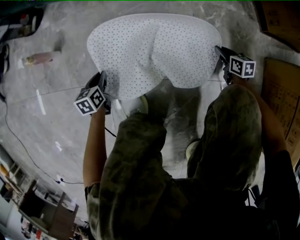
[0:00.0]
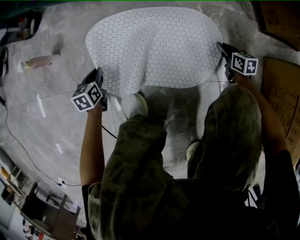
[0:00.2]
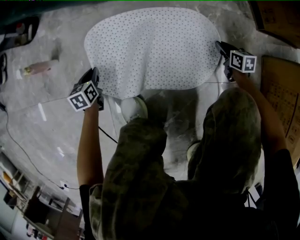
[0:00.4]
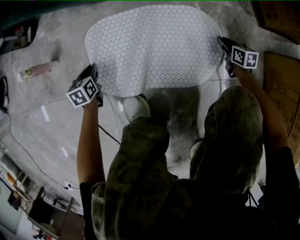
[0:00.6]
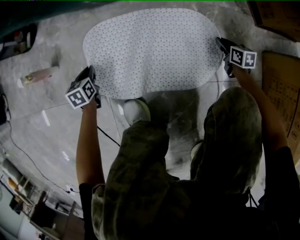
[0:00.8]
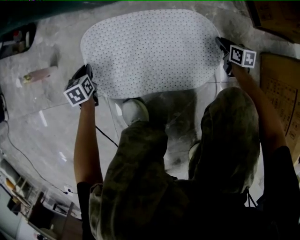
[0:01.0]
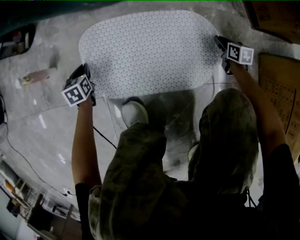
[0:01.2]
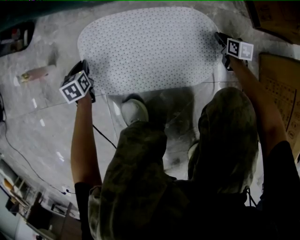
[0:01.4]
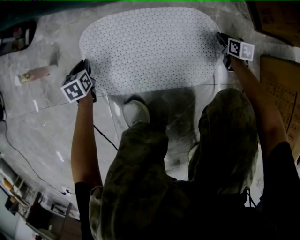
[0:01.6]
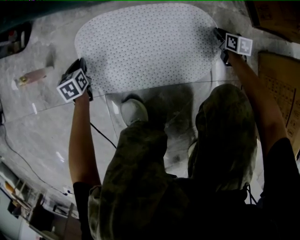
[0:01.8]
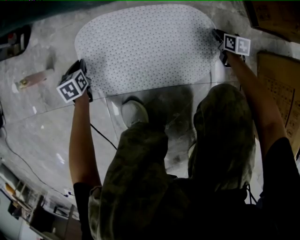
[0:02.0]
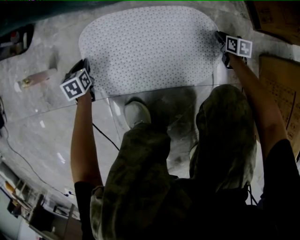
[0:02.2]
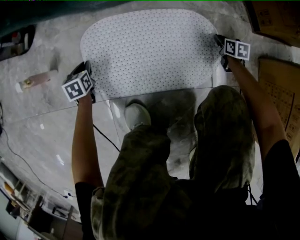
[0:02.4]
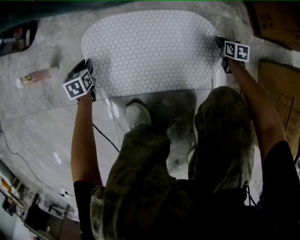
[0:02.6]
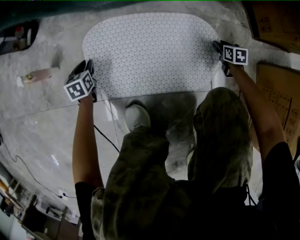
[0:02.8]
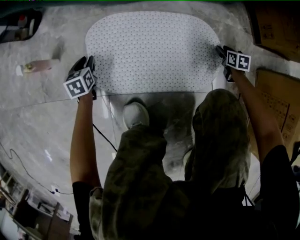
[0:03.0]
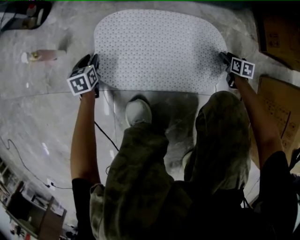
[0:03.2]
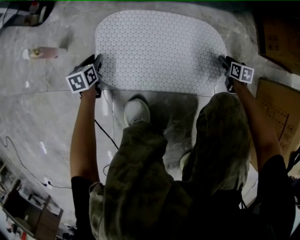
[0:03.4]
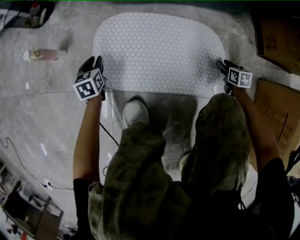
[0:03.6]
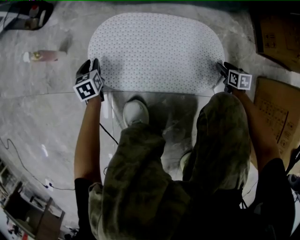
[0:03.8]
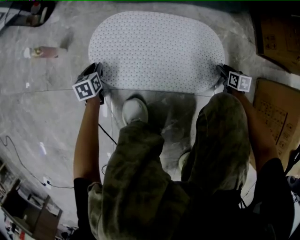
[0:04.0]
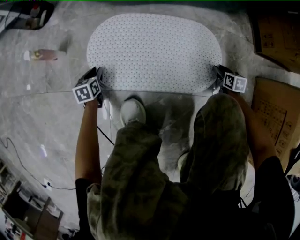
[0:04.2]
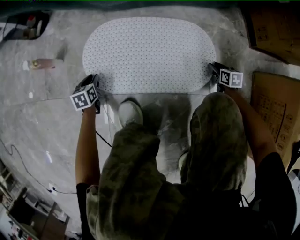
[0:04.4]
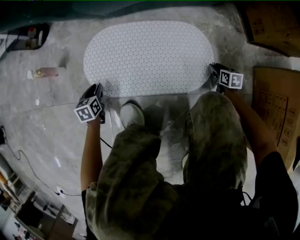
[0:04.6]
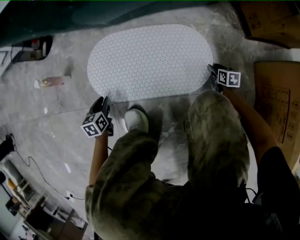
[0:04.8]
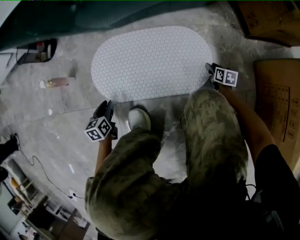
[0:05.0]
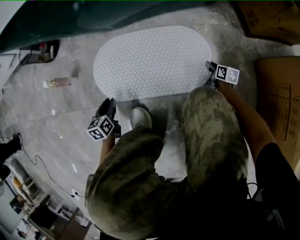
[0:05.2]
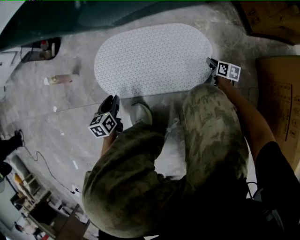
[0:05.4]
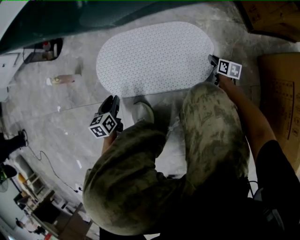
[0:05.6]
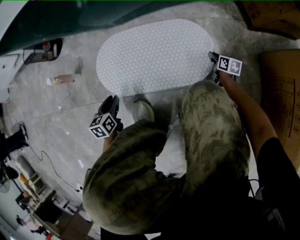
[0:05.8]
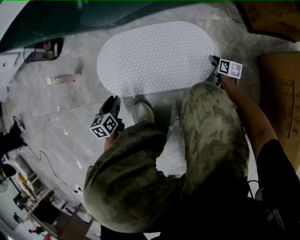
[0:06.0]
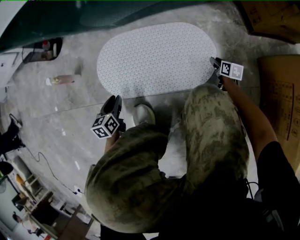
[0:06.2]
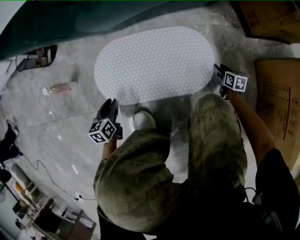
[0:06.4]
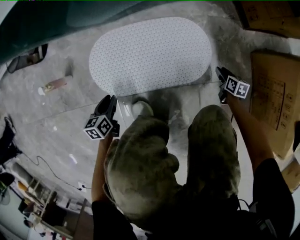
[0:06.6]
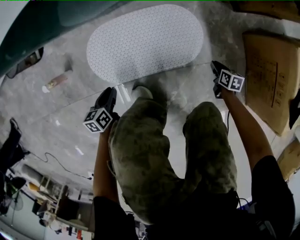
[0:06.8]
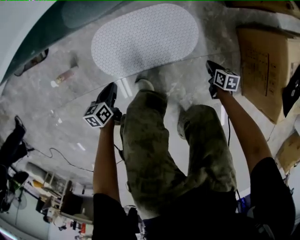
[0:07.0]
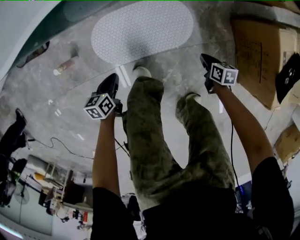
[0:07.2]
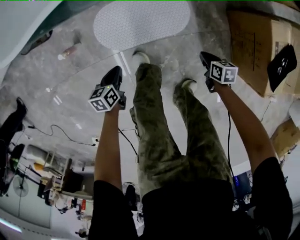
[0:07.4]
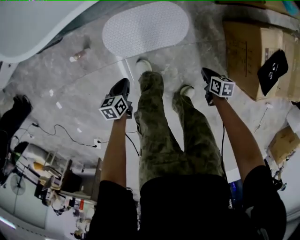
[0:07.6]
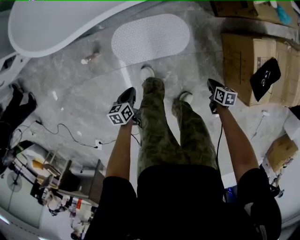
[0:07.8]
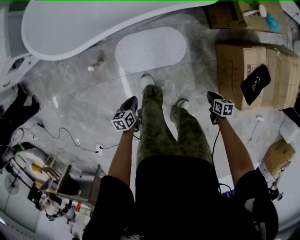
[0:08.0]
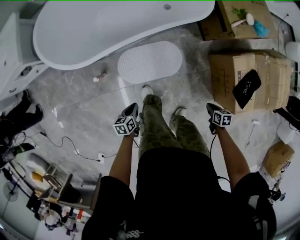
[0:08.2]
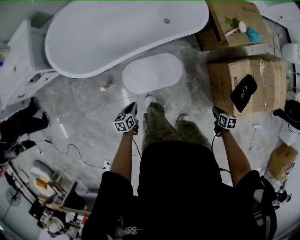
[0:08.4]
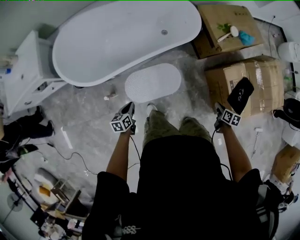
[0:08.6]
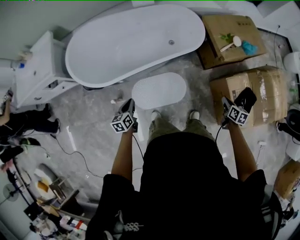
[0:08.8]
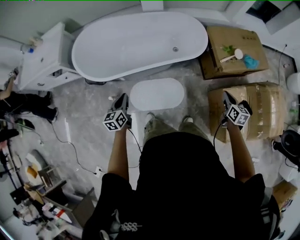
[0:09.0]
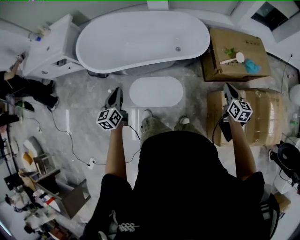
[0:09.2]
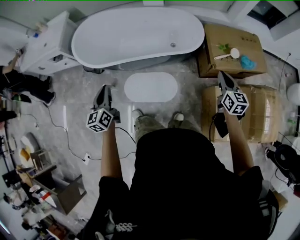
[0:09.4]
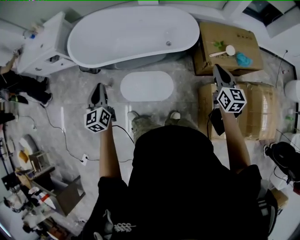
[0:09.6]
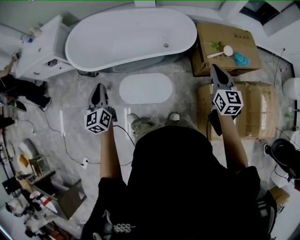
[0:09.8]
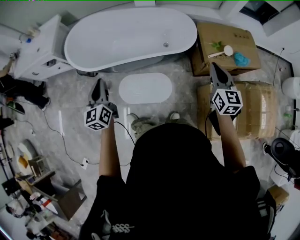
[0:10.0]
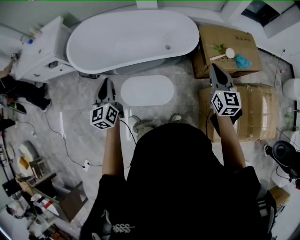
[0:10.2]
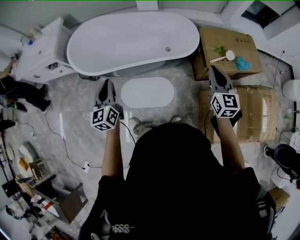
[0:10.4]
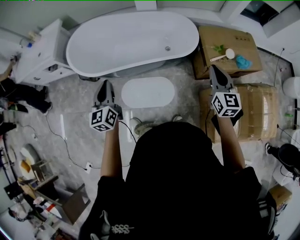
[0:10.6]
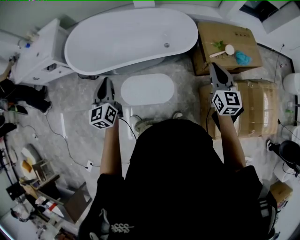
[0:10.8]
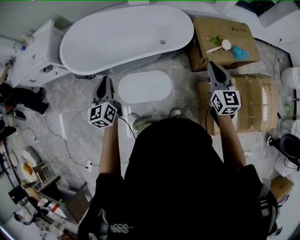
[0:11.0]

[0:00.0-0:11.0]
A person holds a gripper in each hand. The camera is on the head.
0:00.0 to 0:01.6: The left gripper shifts some 15 cm forward; the right gripper shifts approximately 10 cm forward and to the right.
0:01.6 to 0:03.2: The left gripper opens its fingers, while the right gripper opens.
0:03.2 to 0:04.8: The right gripper goes roughly 10 cm backward; the left gripper moves backward and to the right, approximately 15 cm.
0:04.8 to 0:06.2: The left gripper heads upward, covering approximately 5 cm.
0:06.2 to 0:07.8: The right gripper shifts about 60 cm upward and backward, and closes up, while the left gripper shifts approximately 40 cm upward, turns by about 20 degrees, and closes.
0:07.8 to 0:09.4: The grippers both shift upward by some 60 cm. The right gripper angles its fingers upward, by approximately 40 degrees. The left gripper tips its fingers upward by approximately 40 degrees.
0:09.4 to 0:11.0: The right gripper moves upward and to the left, some 10 cm. The left gripper moves forward and to the right, about 10 cm.

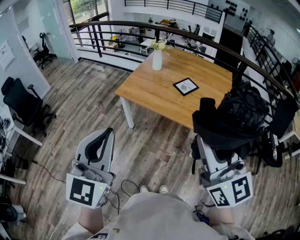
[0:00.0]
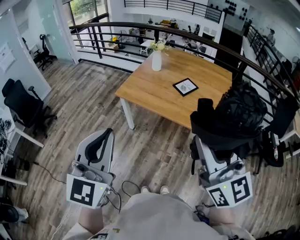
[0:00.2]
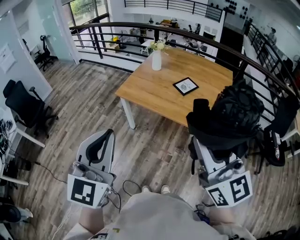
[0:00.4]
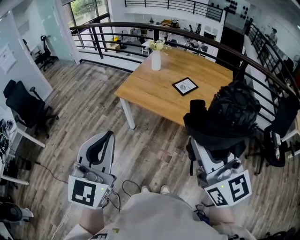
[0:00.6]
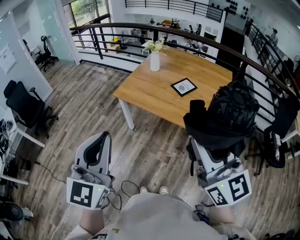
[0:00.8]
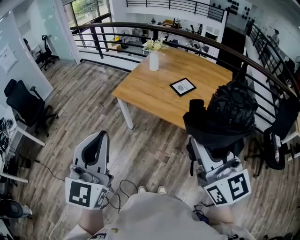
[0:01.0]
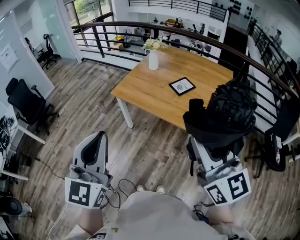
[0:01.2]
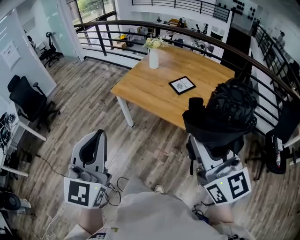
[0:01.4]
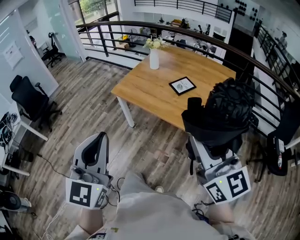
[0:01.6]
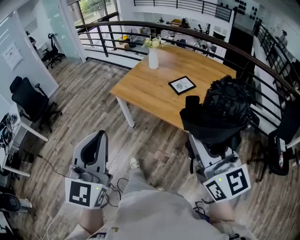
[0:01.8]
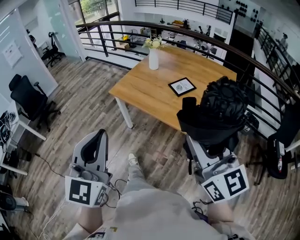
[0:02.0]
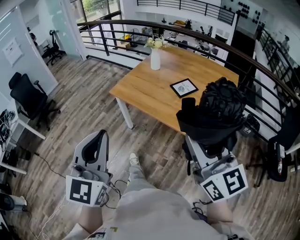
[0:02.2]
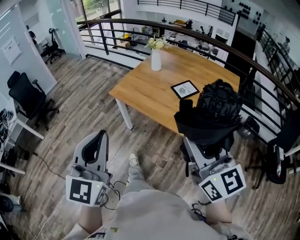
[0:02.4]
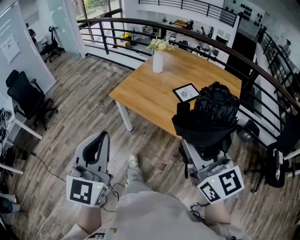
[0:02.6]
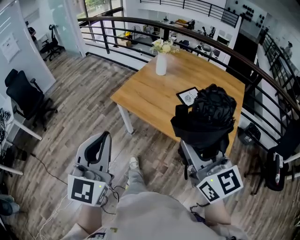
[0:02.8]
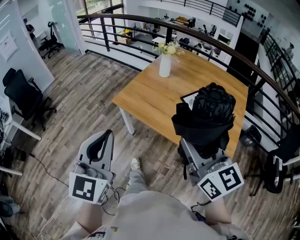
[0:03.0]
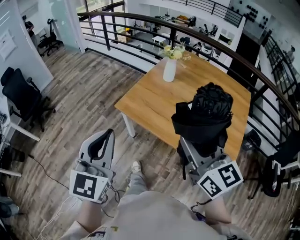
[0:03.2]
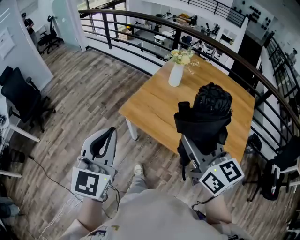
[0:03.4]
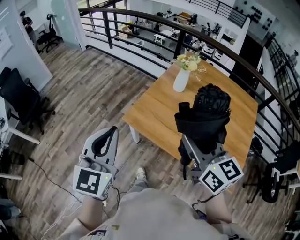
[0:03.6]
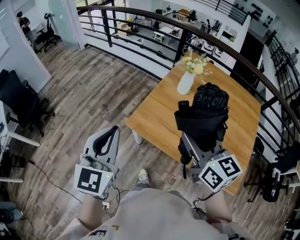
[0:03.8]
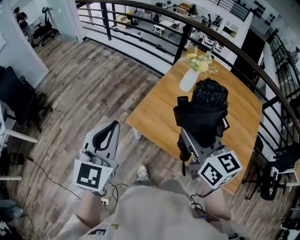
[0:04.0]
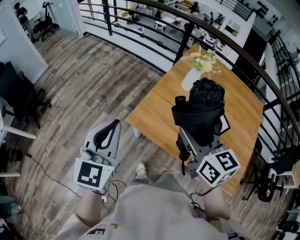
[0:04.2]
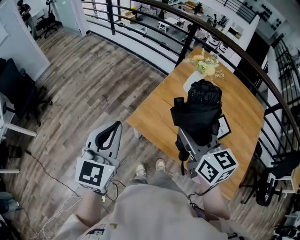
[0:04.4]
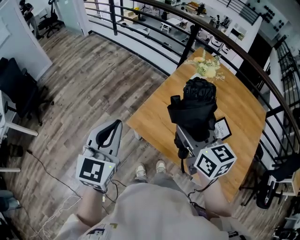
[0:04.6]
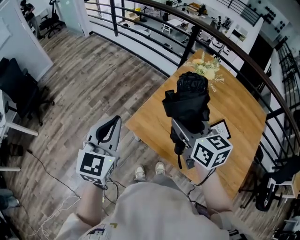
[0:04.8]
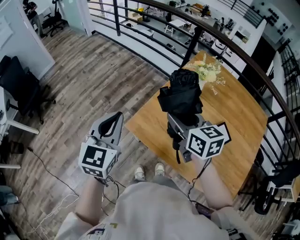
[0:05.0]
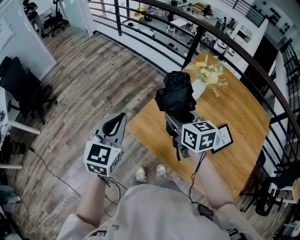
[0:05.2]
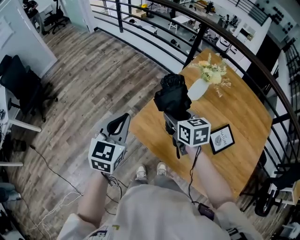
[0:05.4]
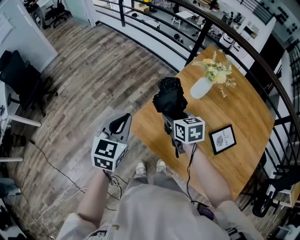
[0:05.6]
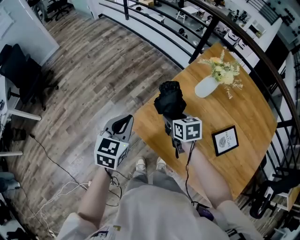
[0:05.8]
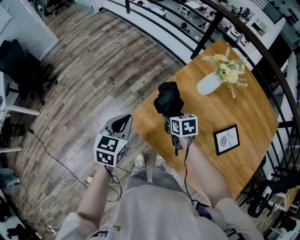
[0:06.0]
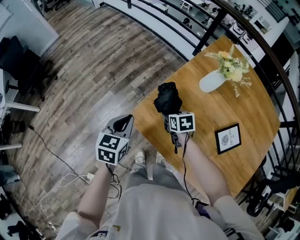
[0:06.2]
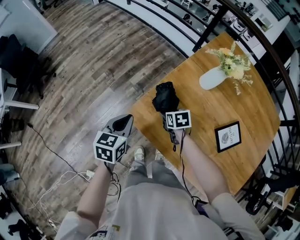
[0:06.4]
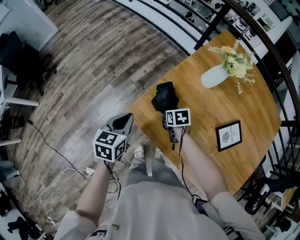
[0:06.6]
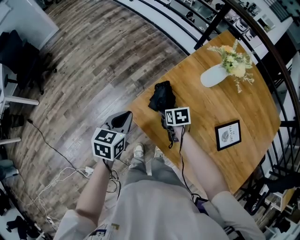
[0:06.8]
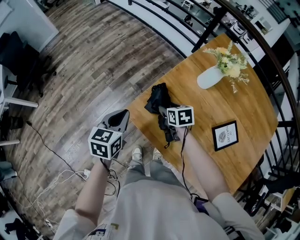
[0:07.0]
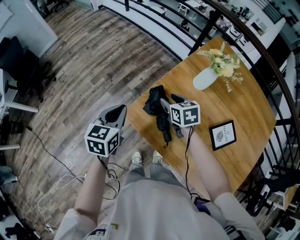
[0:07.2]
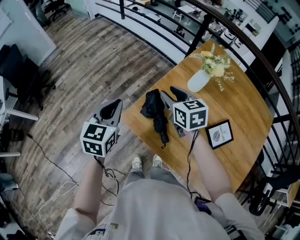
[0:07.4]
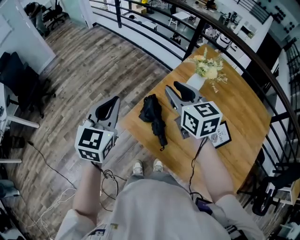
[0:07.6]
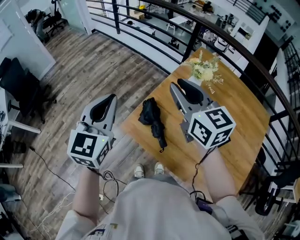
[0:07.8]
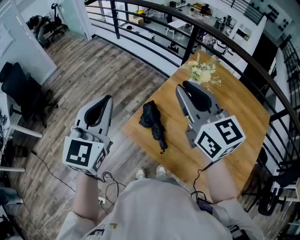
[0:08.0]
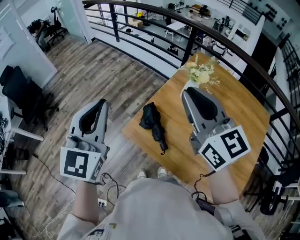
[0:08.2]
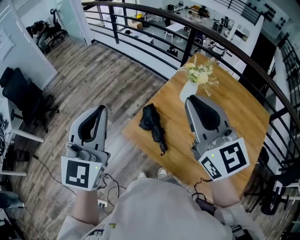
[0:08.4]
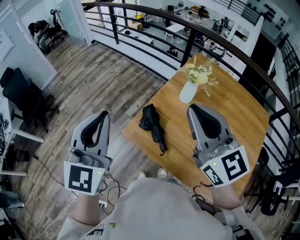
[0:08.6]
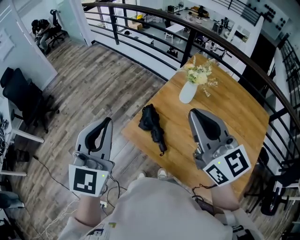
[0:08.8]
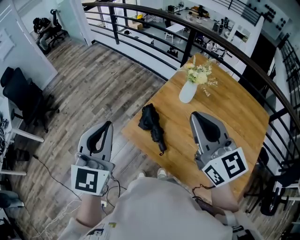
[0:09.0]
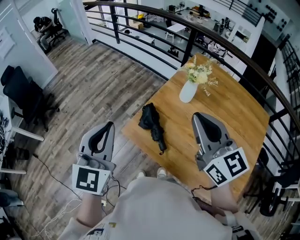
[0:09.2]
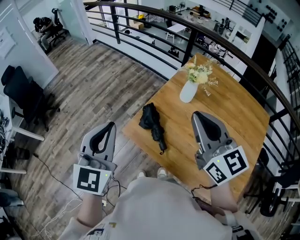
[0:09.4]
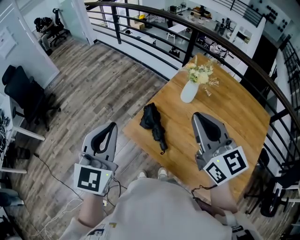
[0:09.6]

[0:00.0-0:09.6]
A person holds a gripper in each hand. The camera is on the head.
0:00.0 to 0:01.6: The two grippers go roughly 10 cm to the right.
0:01.6 to 0:03.2: Both grippers travel together forward, roughly 30 cm.
0:03.2 to 0:04.8: The two grippers go some 35 cm forward. The right gripper swivels some 20 degrees.
0:04.8 to 0:06.4: The left gripper moves downward, some 25 cm, and turns by about 30 degrees; the right gripper heads downward, covering some 35 cm, and tips its fingers downward by roughly 40 degrees.
0:06.4 to 0:08.0: The right gripper heads upward, covering about 50 cm, angles its fingers upward, by approximately 60 degrees, and closes. Meanwhile the left gripper travels upward by some 30 cm, and tips its fingers upward by some 30 degrees.
0:08.0 to 0:09.6: The two grippers go about 10 cm backward.

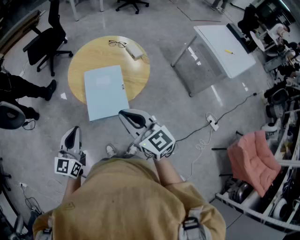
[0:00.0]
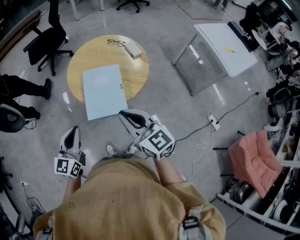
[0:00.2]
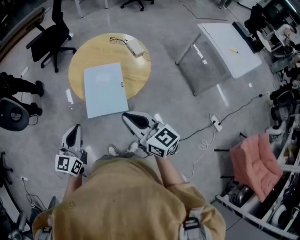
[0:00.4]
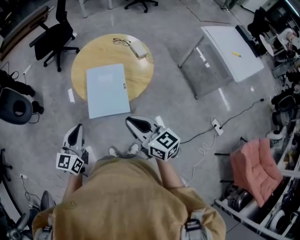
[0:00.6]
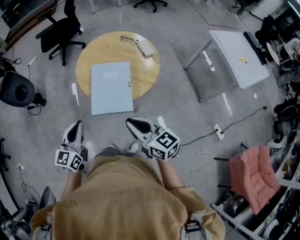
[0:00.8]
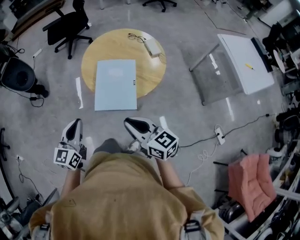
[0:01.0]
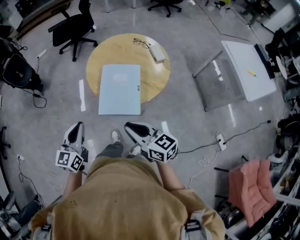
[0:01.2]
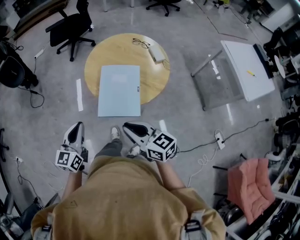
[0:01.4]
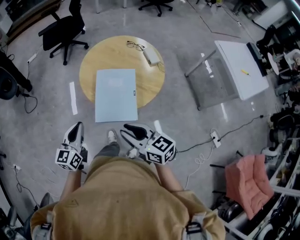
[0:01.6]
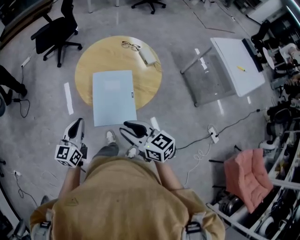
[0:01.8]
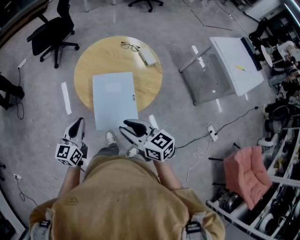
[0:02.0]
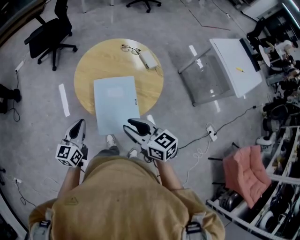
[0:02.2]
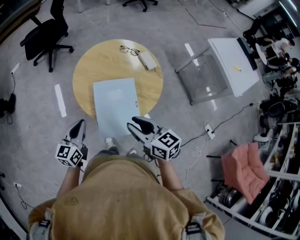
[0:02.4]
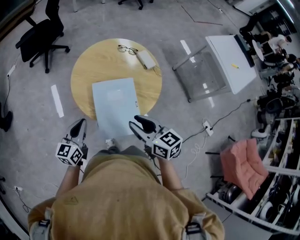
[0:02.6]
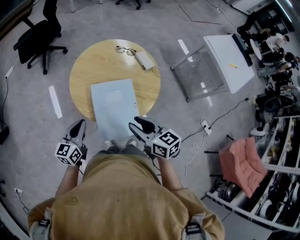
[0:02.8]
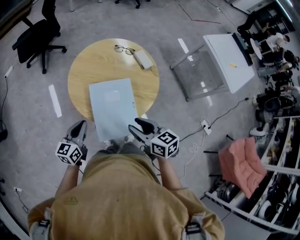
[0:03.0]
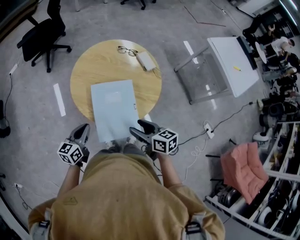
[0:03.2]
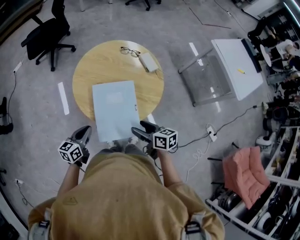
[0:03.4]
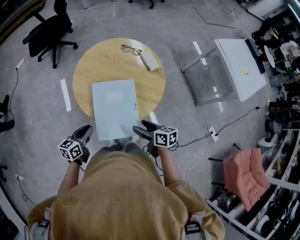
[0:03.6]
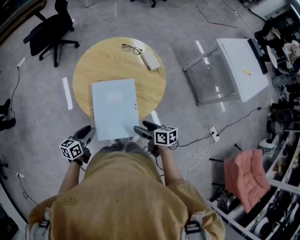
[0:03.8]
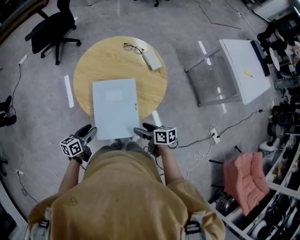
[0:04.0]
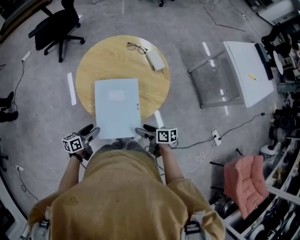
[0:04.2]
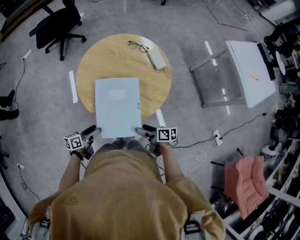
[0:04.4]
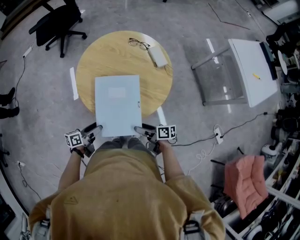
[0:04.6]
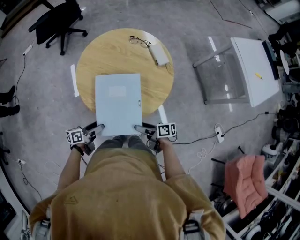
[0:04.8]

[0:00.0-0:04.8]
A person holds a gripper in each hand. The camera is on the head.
0:00.0 to 0:01.6: The right gripper is displaced downward by about 5 cm, and turns by some 20 degrees, while the left gripper moves downward and forward, approximately 5 cm.
0:01.6 to 0:03.2: Both grippers move forward and downward, some 15 cm. The left gripper turns by roughly 20 degrees. Meanwhile the right gripper turns by approximately 30 degrees, and opens.
0:03.2 to 0:04.8: Both grippers move downward, roughly 15 cm. The left gripper swivels roughly 40 degrees, and opens up; the right gripper changes its angle by about 40 degrees.
